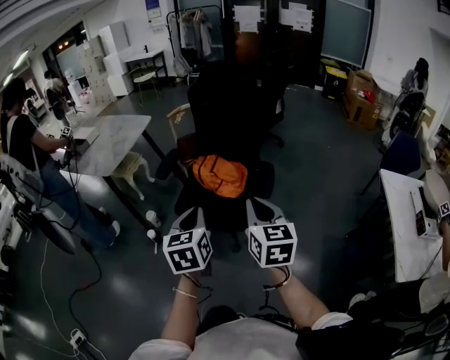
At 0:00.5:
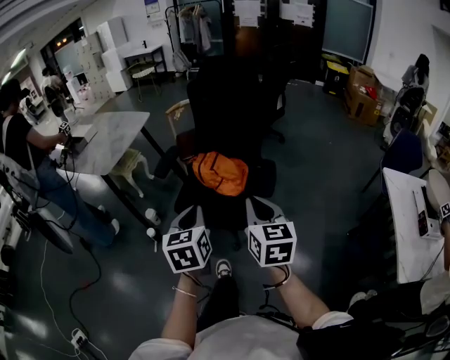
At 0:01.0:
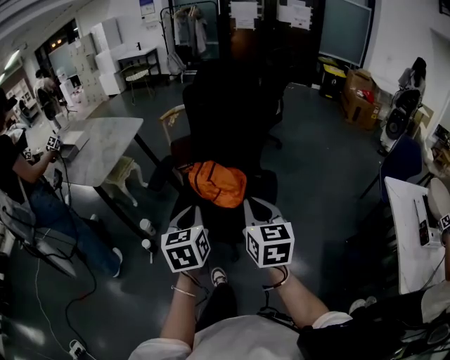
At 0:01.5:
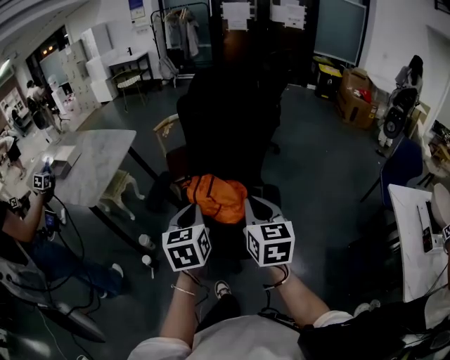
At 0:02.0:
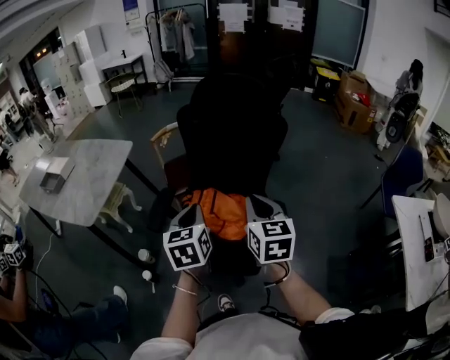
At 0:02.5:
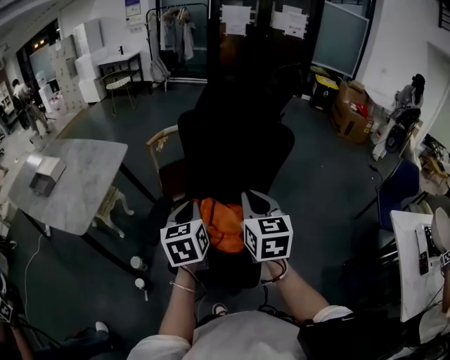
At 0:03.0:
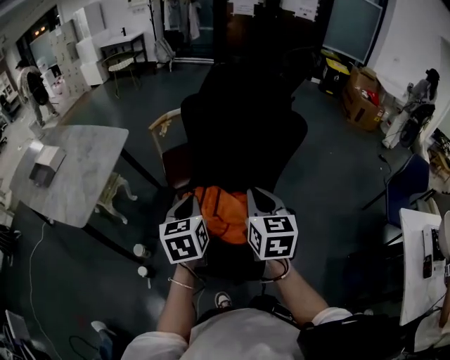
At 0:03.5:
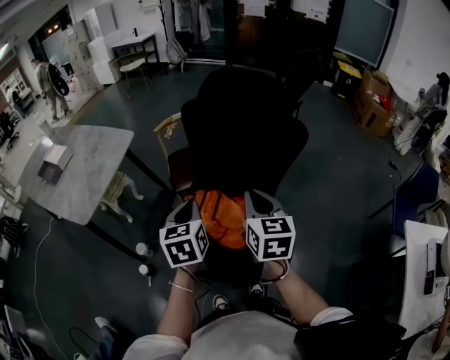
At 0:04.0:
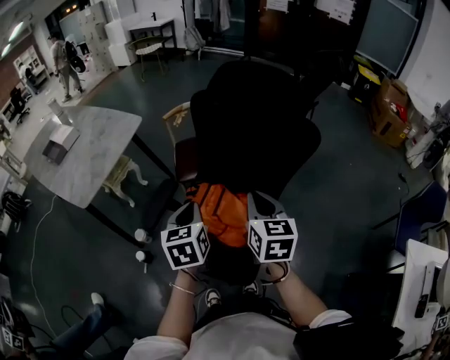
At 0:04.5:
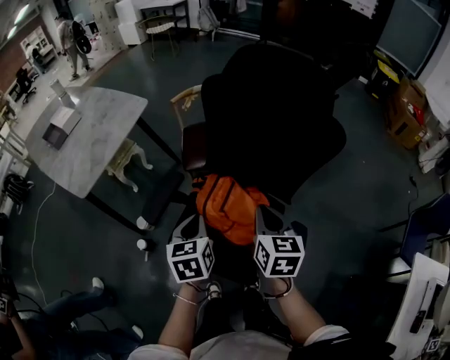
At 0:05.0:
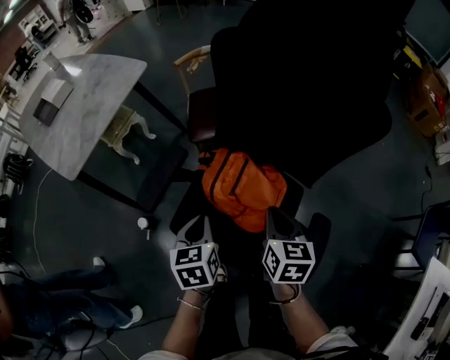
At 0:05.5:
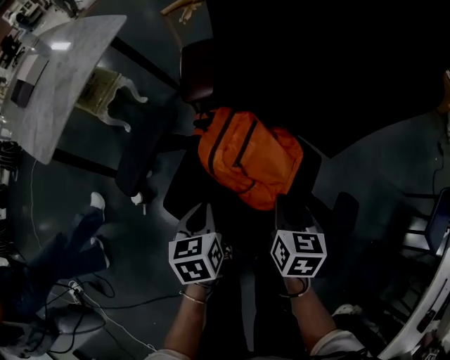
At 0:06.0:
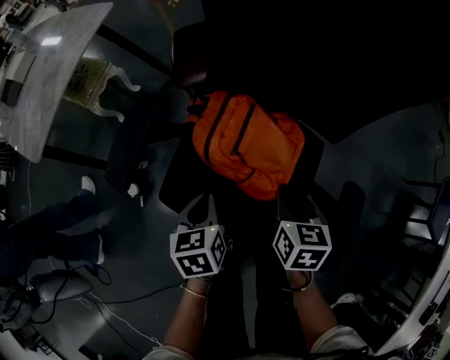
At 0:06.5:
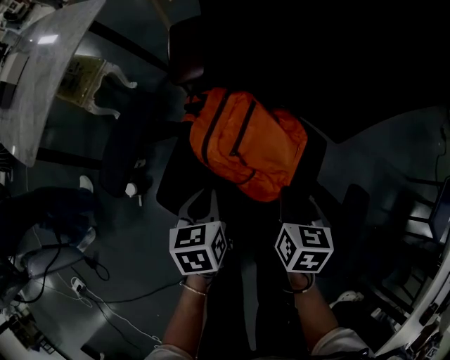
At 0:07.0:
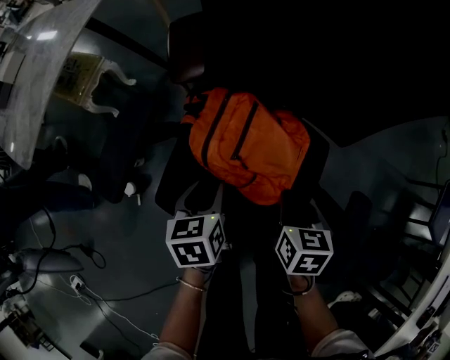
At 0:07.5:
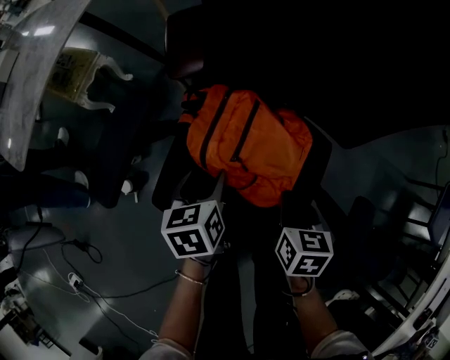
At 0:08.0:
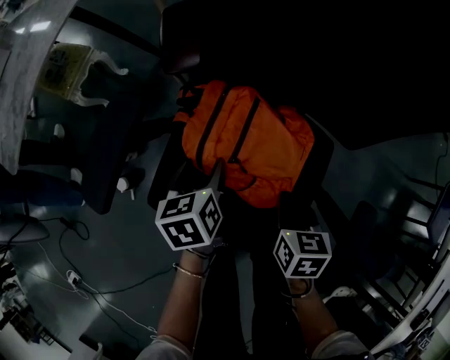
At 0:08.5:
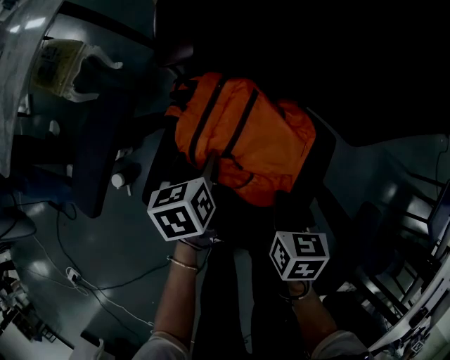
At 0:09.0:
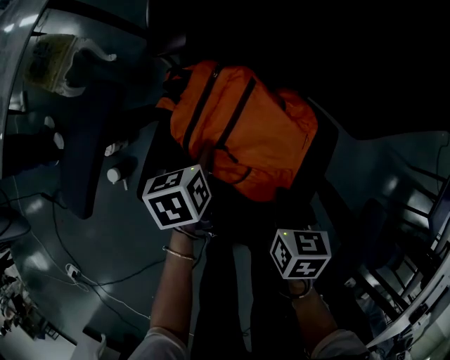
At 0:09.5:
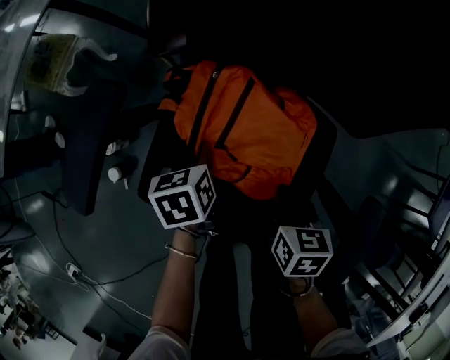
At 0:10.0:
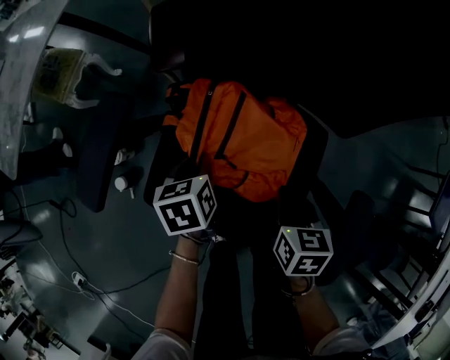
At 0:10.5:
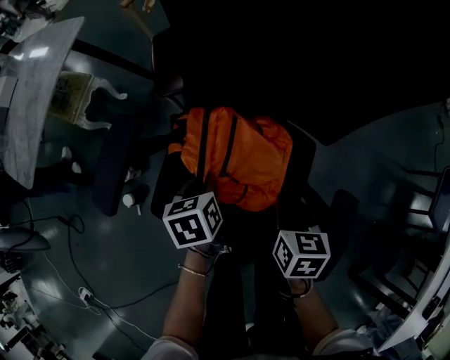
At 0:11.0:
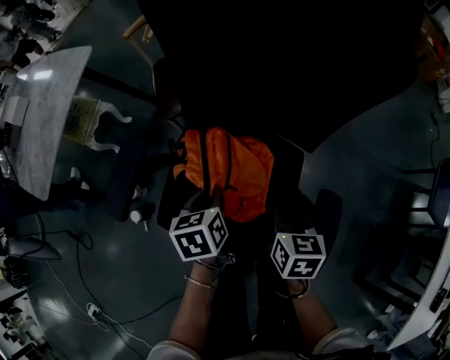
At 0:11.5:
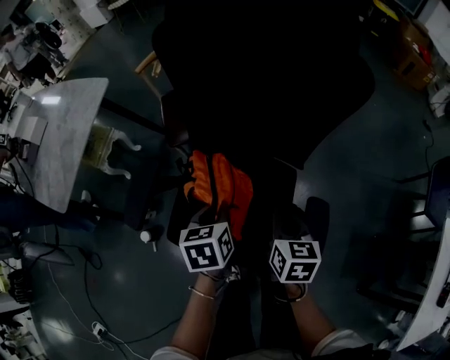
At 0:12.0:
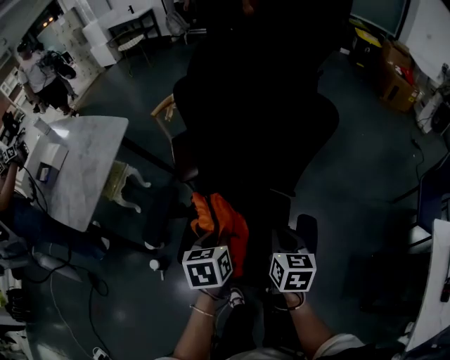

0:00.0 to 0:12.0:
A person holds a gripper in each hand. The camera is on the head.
0:00.0 to 0:02.0: The two grippers go approximately 30 cm forward.
0:02.0 to 0:04.0: The right gripper goes approximately 15 cm forward, while the left gripper is displaced forward and downward by roughly 10 cm.
0:04.0 to 0:06.0: The grippers both shift downward by about 35 cm. The right gripper swivels some 30 degrees. The left gripper rotates roughly 20 degrees.
0:06.0 to 0:08.0: The right gripper heads downward, covering roughly 10 cm, while the left gripper heads forward and downward, covering approximately 10 cm, and opens up.
0:08.0 to 0:10.0: The left gripper closes up.
0:10.0 to 0:12.0: Both grippers travel together upward, approximately 25 cm.

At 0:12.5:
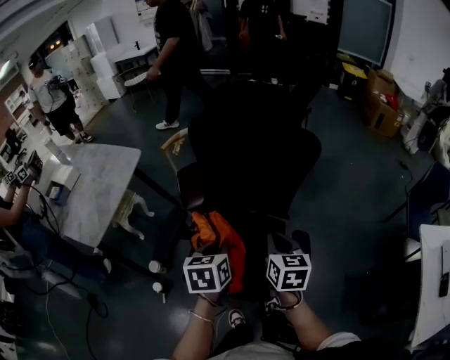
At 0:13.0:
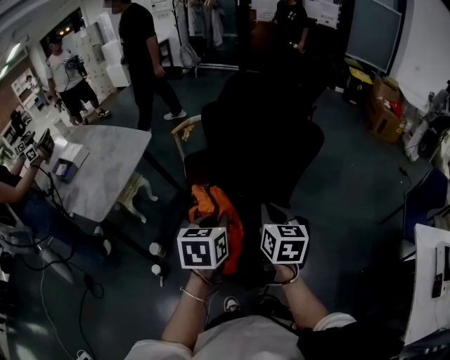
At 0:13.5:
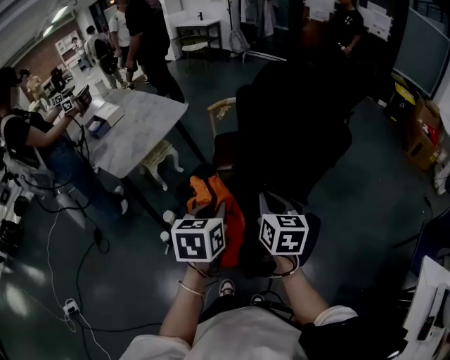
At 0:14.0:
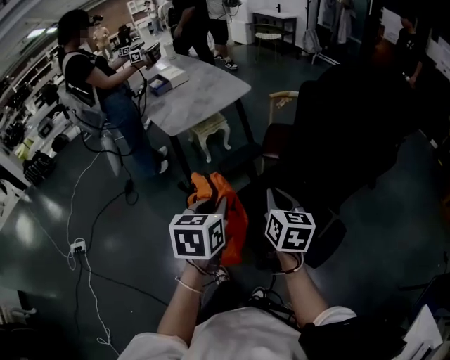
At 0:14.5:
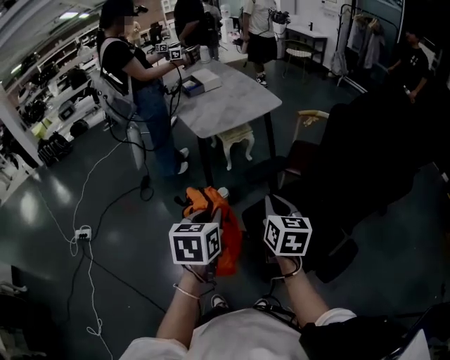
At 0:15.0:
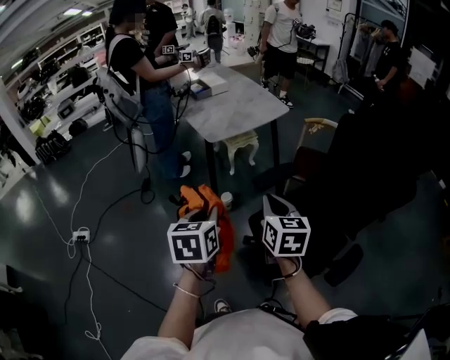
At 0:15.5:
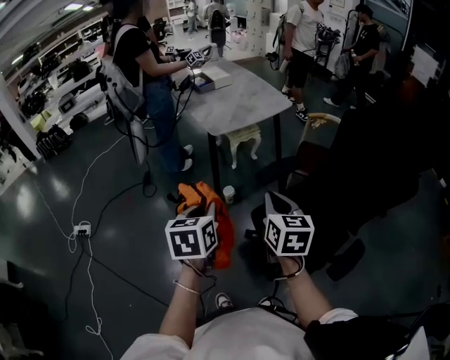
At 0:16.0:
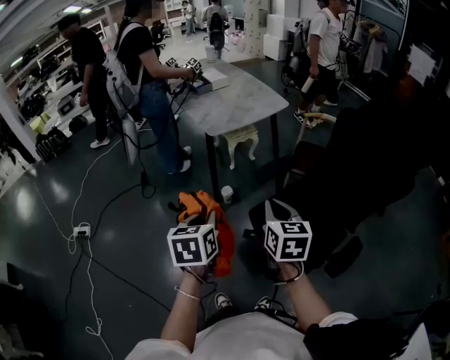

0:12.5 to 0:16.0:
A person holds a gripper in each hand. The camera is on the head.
0:12.5 to 0:14.5: The right gripper changes place by approximately 30 cm, and rotates about 50 degrees; the left gripper ends up some 35 cm from where it was, and changes its angle by approximately 40 degrees.
0:14.5 to 0:16.0: The two grippers go roughly 10 cm to the left.

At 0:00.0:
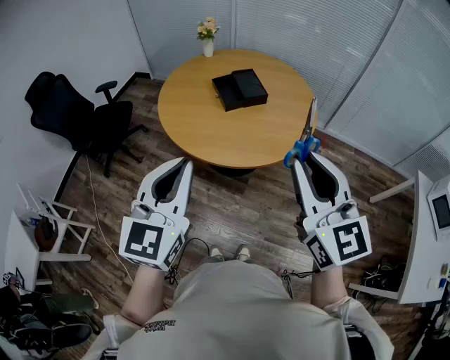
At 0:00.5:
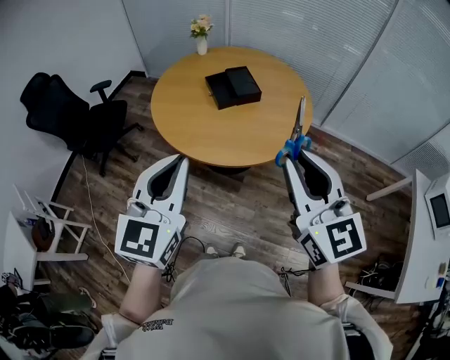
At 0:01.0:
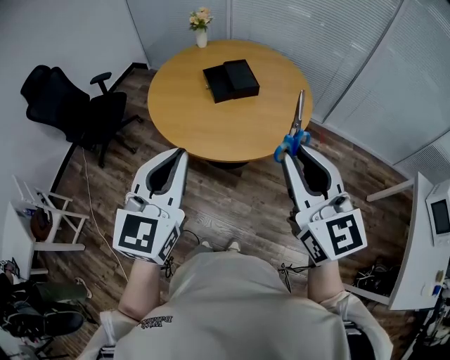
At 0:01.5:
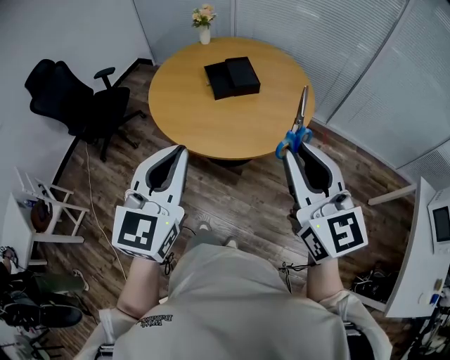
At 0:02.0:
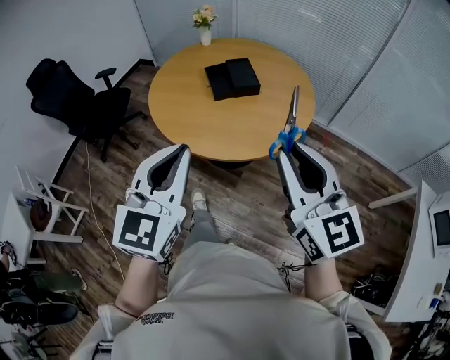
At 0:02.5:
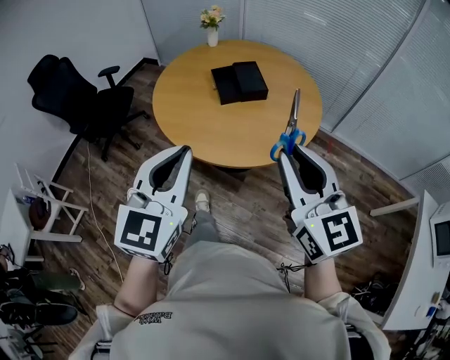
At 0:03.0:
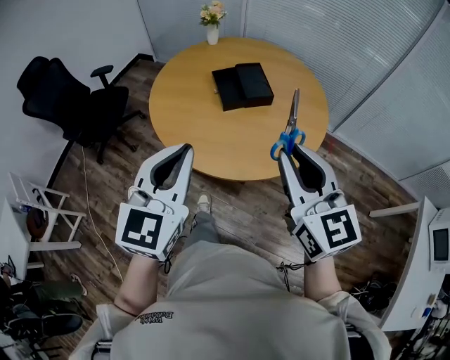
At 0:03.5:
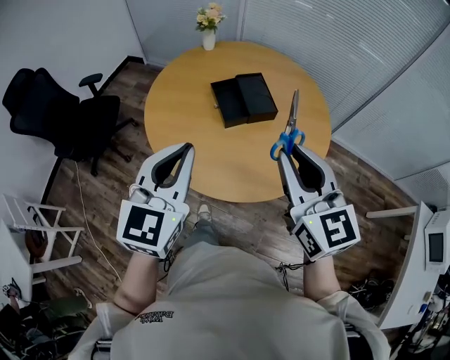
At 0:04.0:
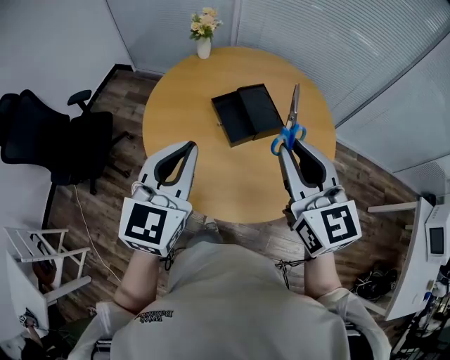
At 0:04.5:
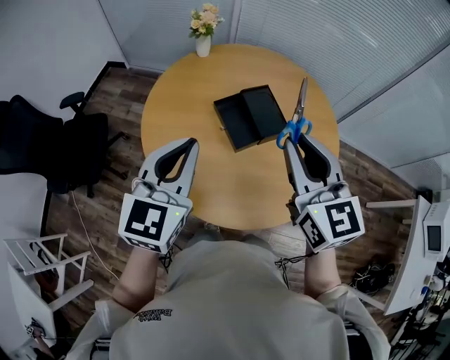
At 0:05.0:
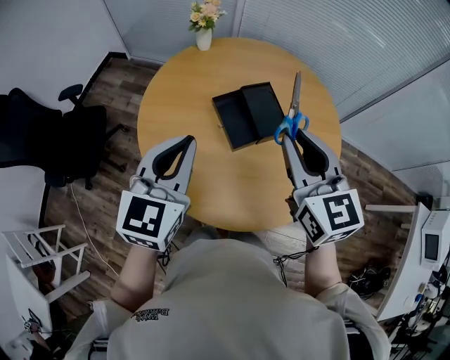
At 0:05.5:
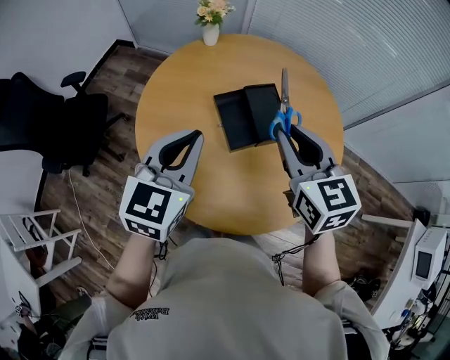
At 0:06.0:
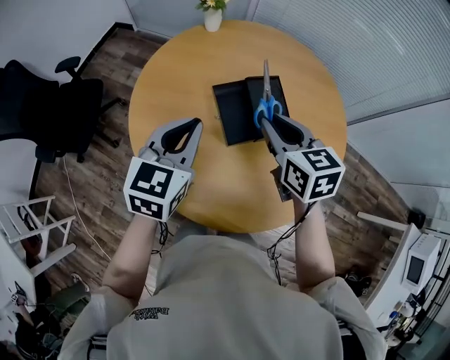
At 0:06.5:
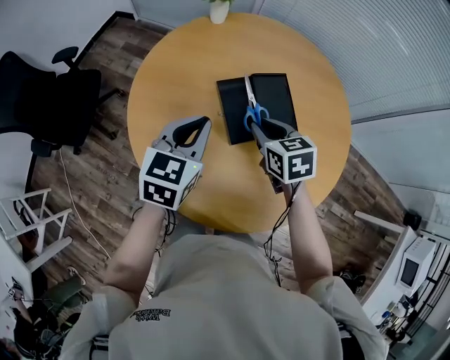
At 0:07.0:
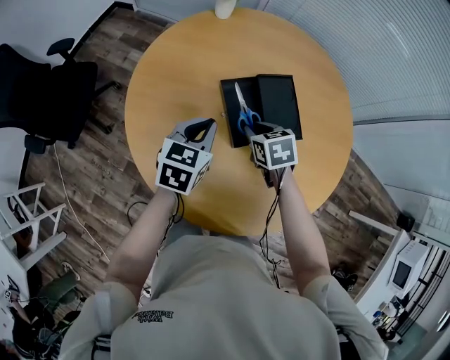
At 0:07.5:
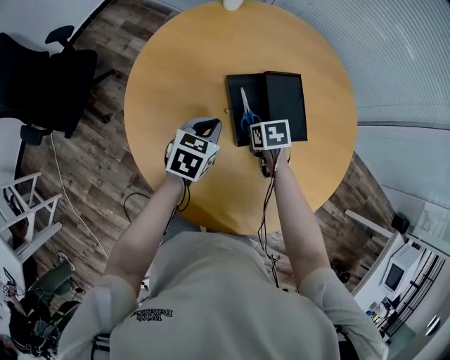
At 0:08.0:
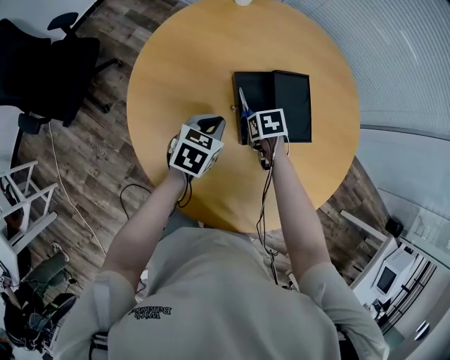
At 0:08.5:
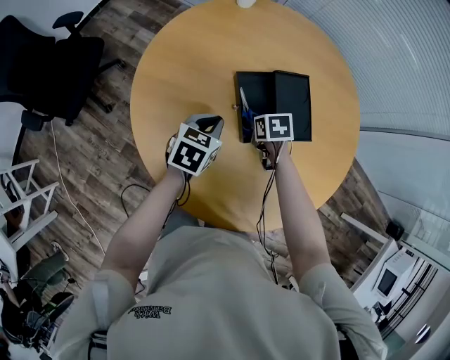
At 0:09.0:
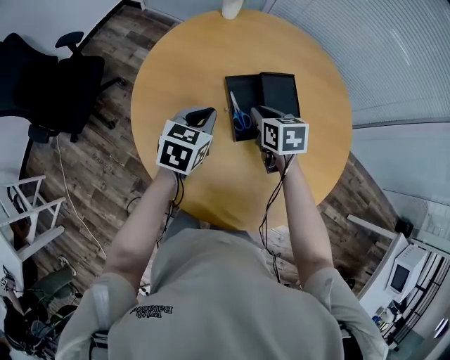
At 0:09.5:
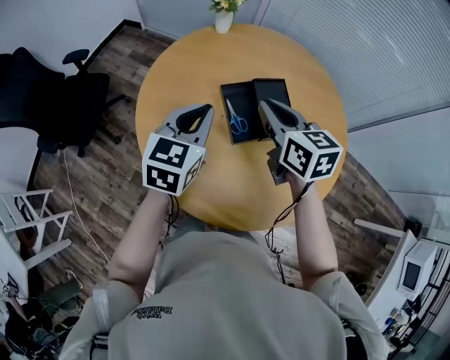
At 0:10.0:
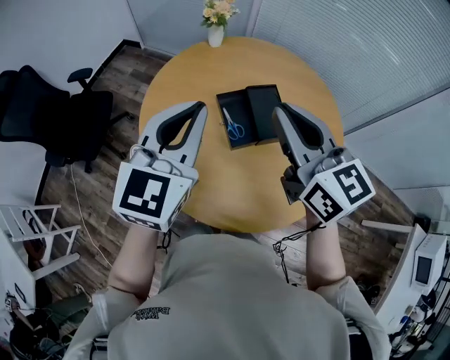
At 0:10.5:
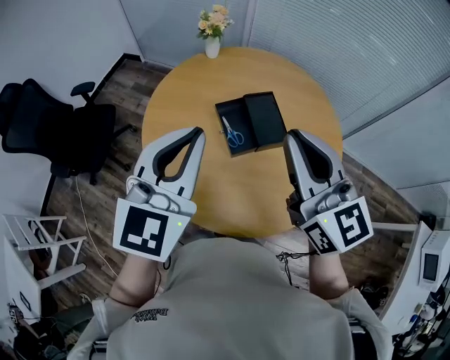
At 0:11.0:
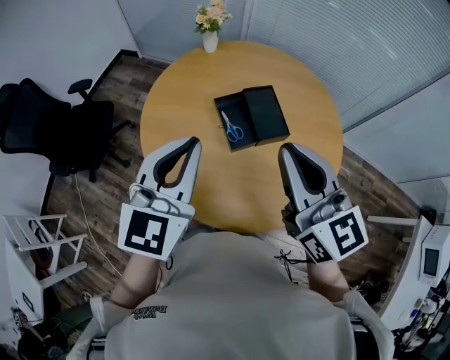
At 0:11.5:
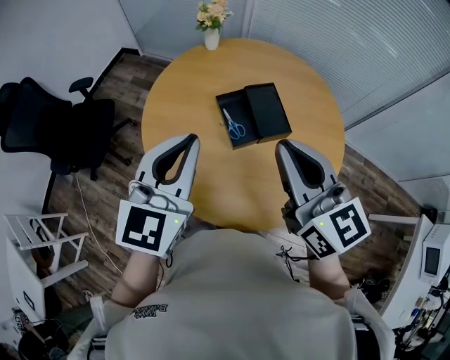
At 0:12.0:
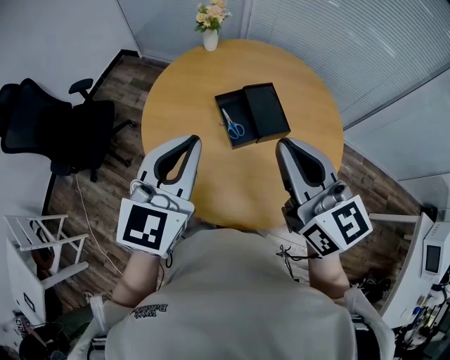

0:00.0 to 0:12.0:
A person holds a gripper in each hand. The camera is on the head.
0:00.0 to 0:02.0: The grippers both shift to the right by about 10 cm.
0:02.0 to 0:04.0: The left gripper heads forward, covering about 35 cm; the right gripper goes roughly 35 cm forward and to the left.
0:04.0 to 0:06.0: Both grippers move forward and downward, about 20 cm. The right gripper changes its angle by some 30 degrees.
0:06.0 to 0:08.0: Both grippers travel together downward, roughly 25 cm. The right gripper tips its fingers downward by some 50 degrees, while the left gripper swivels some 20 degrees.
0:08.0 to 0:10.0: Both grippers move upward, approximately 40 cm. The left gripper tips its fingers upward by some 30 degrees; the right gripper angles its fingers upward, by about 70 degrees.
0:10.0 to 0:12.0: Both grippers travel together backward, about 5 cm.
